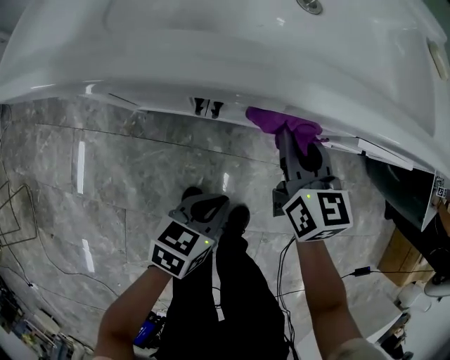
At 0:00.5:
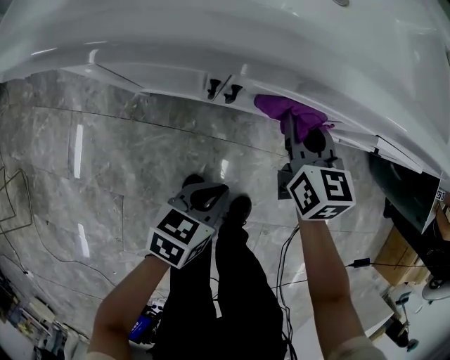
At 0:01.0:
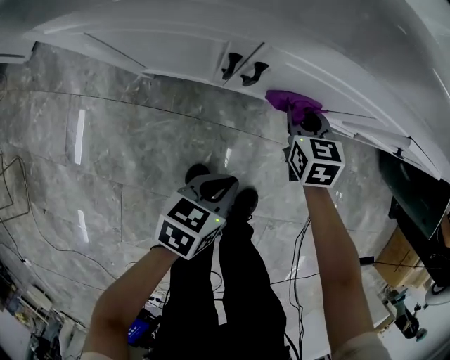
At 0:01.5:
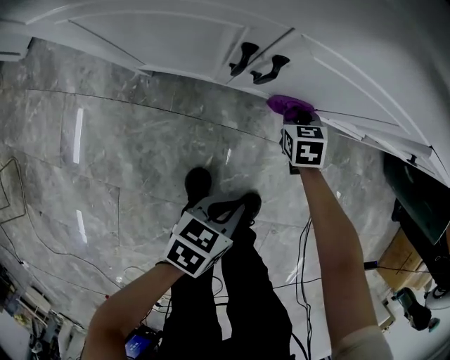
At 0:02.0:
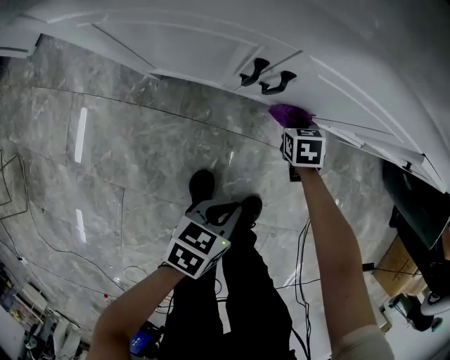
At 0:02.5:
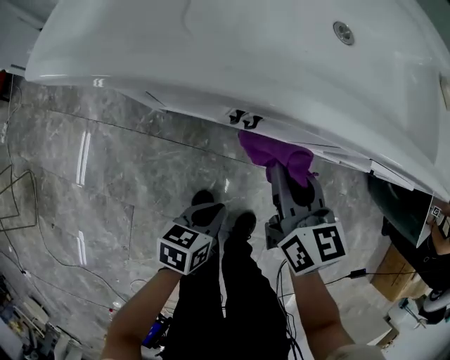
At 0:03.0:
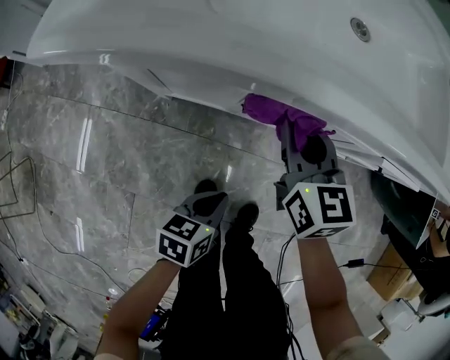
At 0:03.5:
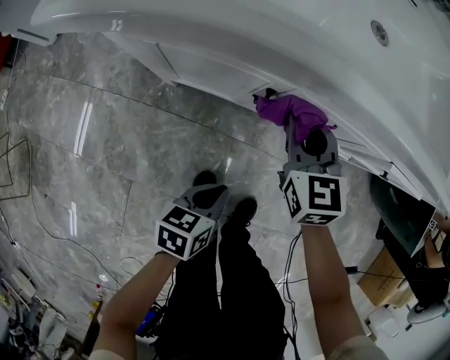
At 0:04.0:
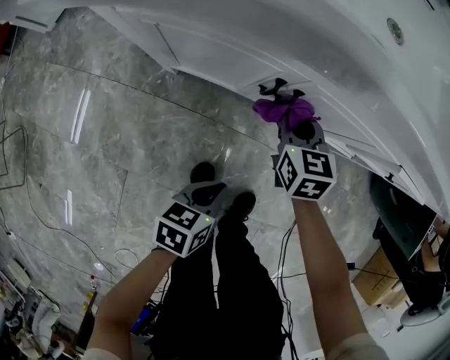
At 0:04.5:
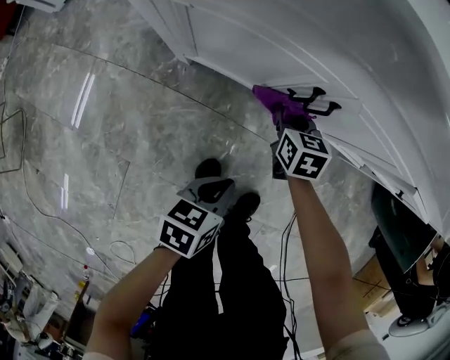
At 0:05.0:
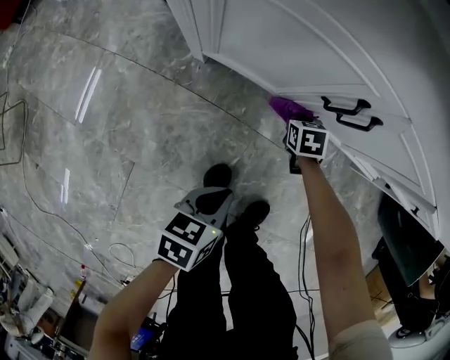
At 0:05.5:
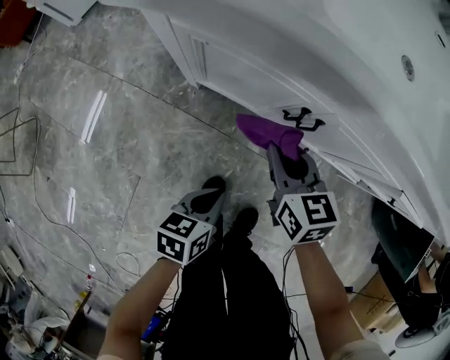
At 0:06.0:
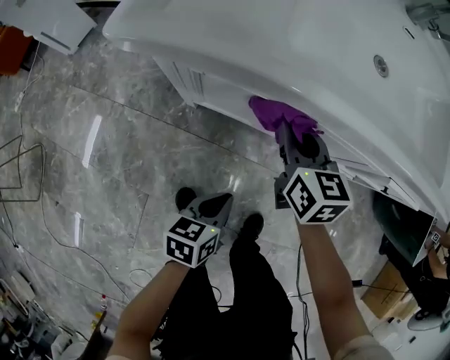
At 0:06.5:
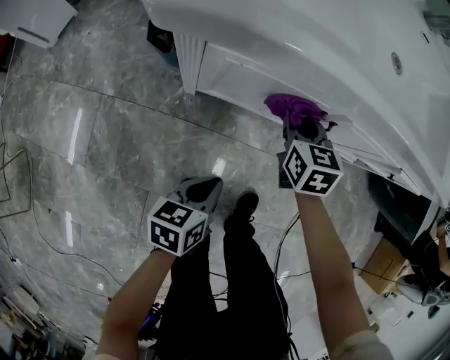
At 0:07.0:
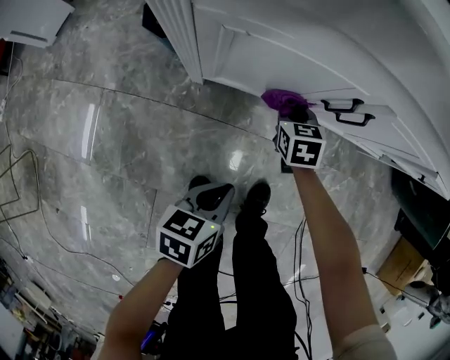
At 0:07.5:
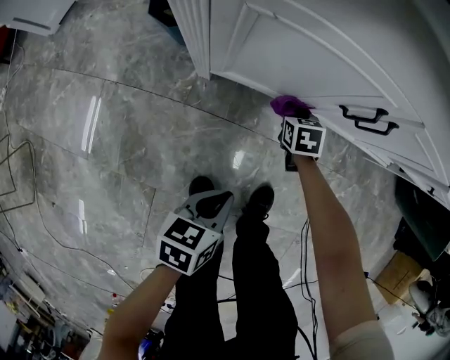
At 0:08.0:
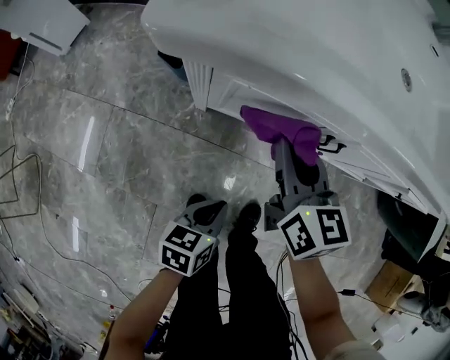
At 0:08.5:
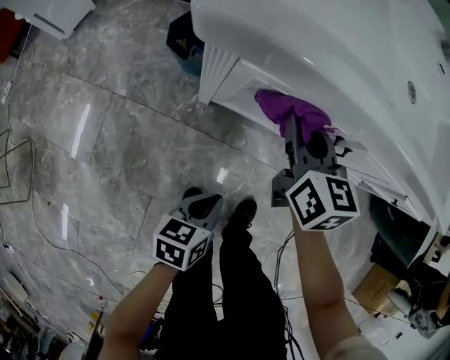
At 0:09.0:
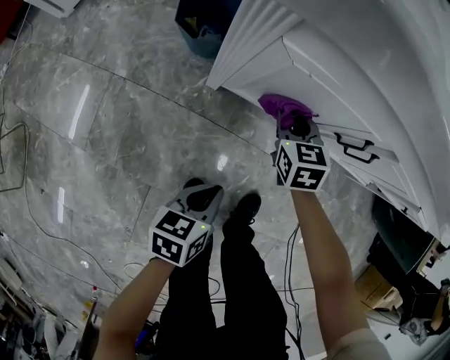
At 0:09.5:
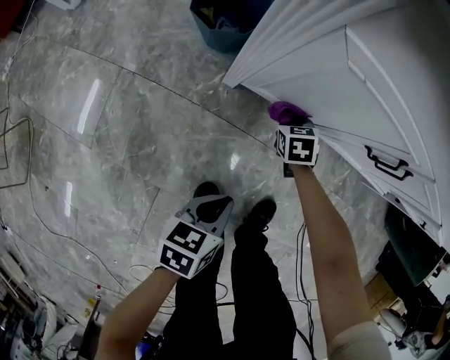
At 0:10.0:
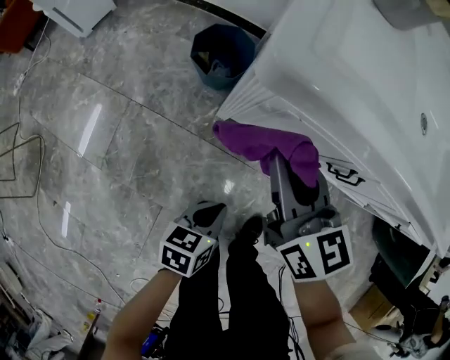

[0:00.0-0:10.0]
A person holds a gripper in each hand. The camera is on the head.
0:00.0 to 0:02.0: The right gripper heads downward, covering roughly 30 cm, and angles its fingers downward, by roughly 40 degrees. The left gripper is displaced downward and backward by approximately 15 cm.
0:02.0 to 0:04.0: The right gripper goes roughly 25 cm upward and to the left, and changes its angle by about 30 degrees; the left gripper moves to the left, about 5 cm.
0:04.0 to 0:06.0: The right gripper is displaced to the left by approximately 10 cm, and moves roughly 25 cm downward and comes back. Meanwhile the left gripper shifts about 10 cm to the left and upward.
0:06.0 to 0:08.0: The two grippers go approximately 10 cm to the left. The right gripper moves some 35 cm downward and comes back. The left gripper moves approximately 15 cm downward and comes back.
0:08.0 to 0:10.0: The left gripper moves to the left, some 5 cm, and reaches roughly 10 cm downward, then returns, while the right gripper travels to the left by roughly 10 cm, and moves approximately 40 cm downward and comes back.

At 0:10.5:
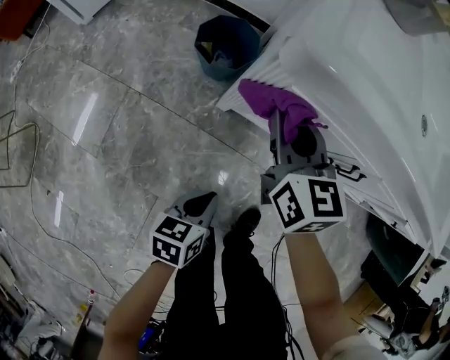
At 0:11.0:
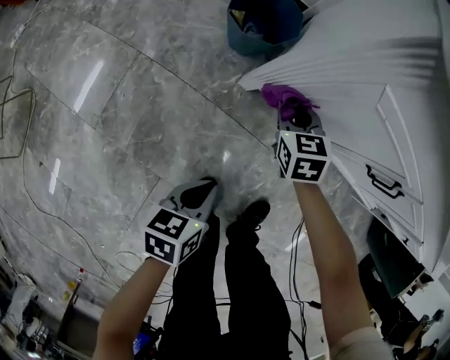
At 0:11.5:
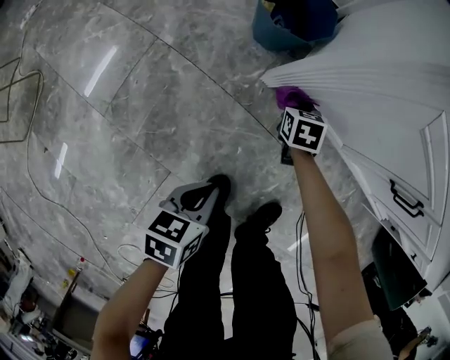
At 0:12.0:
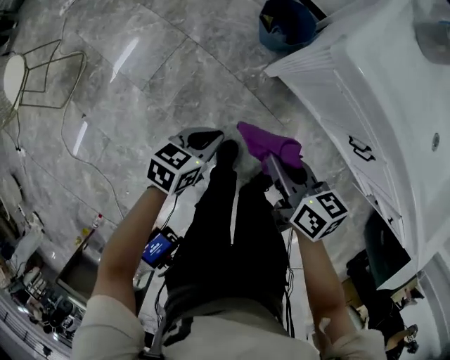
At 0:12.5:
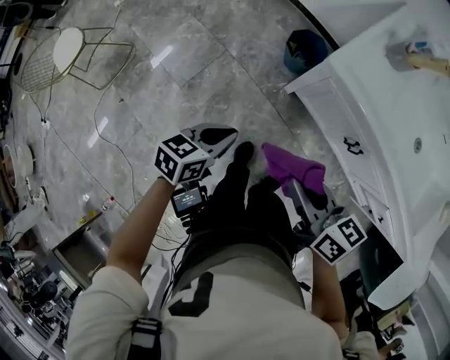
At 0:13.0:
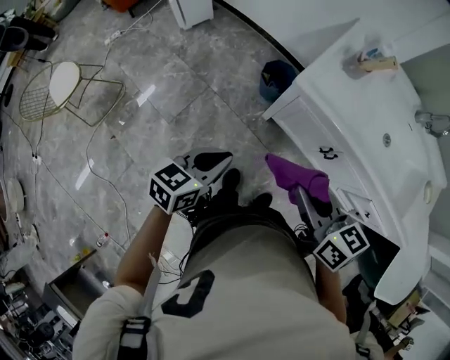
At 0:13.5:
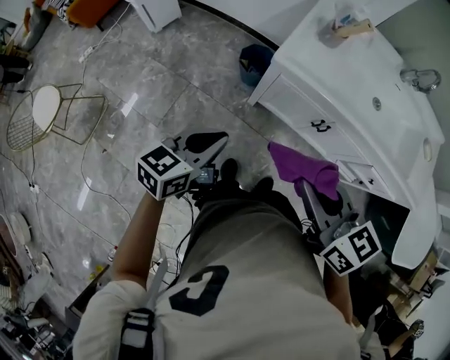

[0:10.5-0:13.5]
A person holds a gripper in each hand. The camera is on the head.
0:10.5 to 0:12.0: The right gripper is displaced backward by approximately 20 cm, travels downward and back again, approximately 40 cm each way, and changes its angle by about 50 degrees; the left gripper goes approximately 15 cm to the left and upward.
0:12.0 to 0:13.5: The grippers both shift upward by roughly 35 cm. The left gripper rotates approximately 30 degrees; the right gripper turns by some 30 degrees.

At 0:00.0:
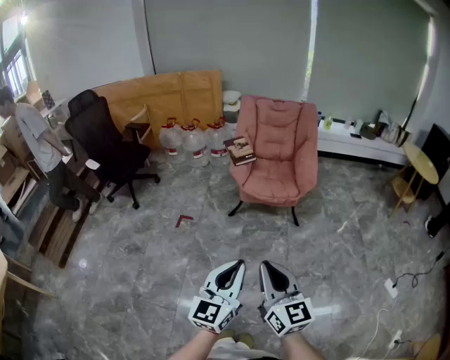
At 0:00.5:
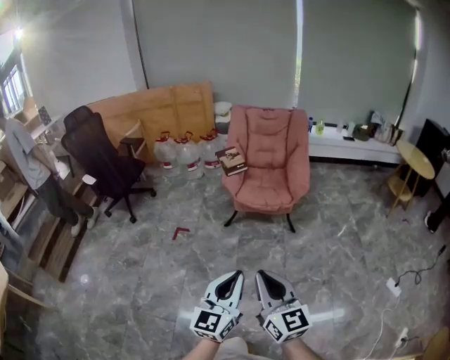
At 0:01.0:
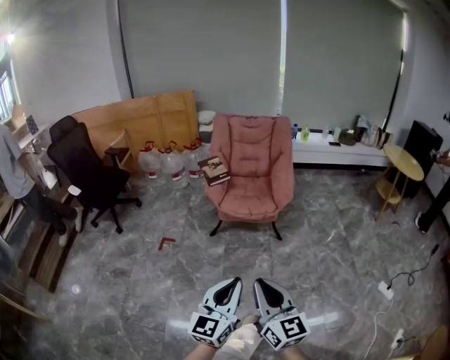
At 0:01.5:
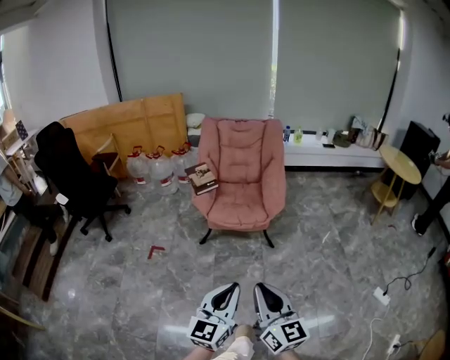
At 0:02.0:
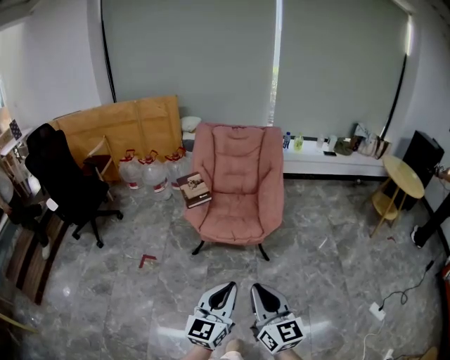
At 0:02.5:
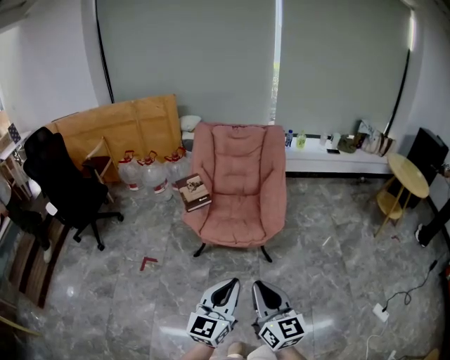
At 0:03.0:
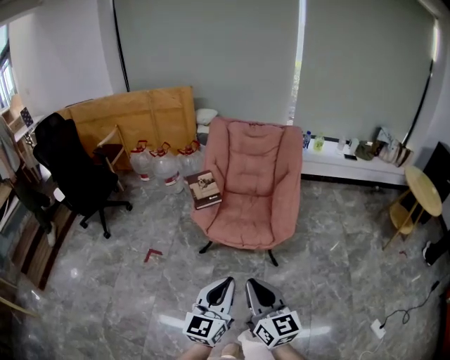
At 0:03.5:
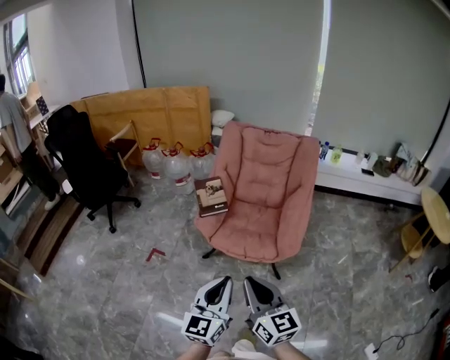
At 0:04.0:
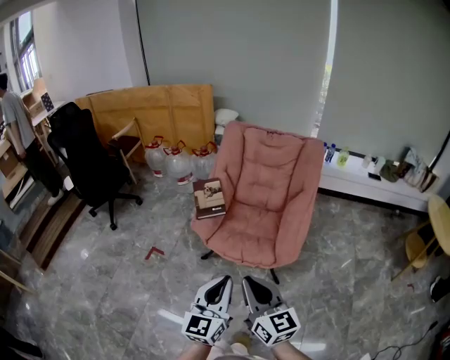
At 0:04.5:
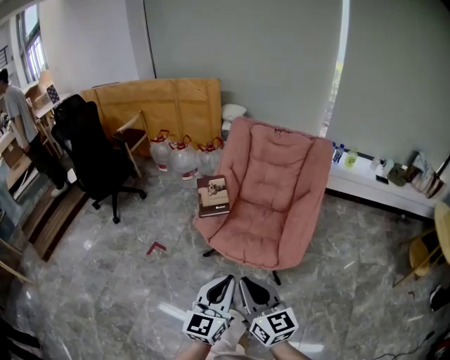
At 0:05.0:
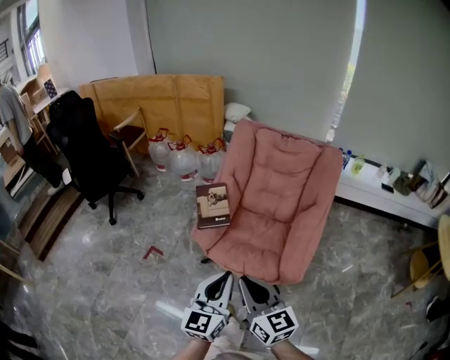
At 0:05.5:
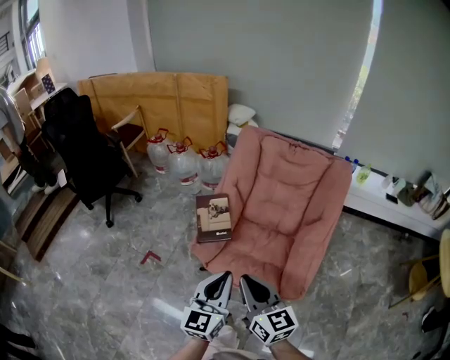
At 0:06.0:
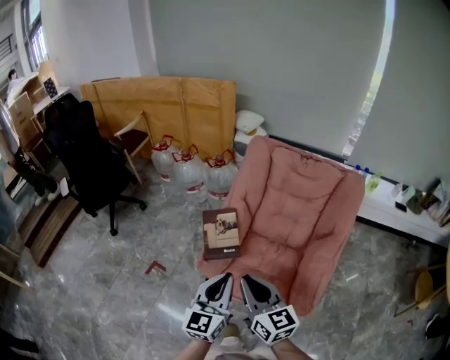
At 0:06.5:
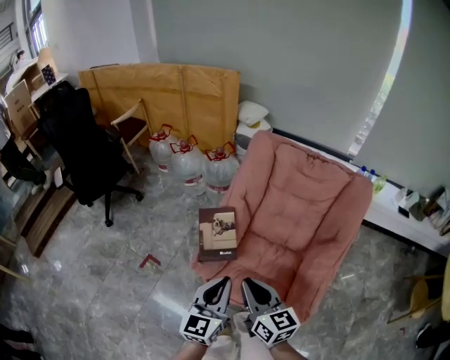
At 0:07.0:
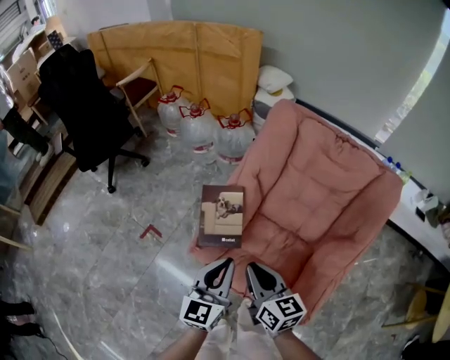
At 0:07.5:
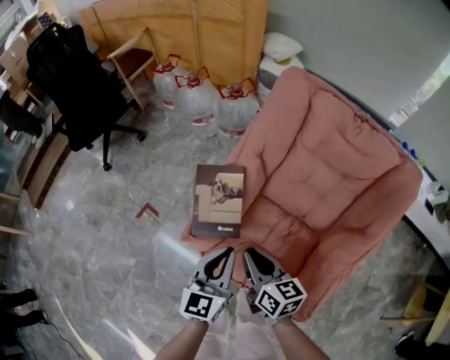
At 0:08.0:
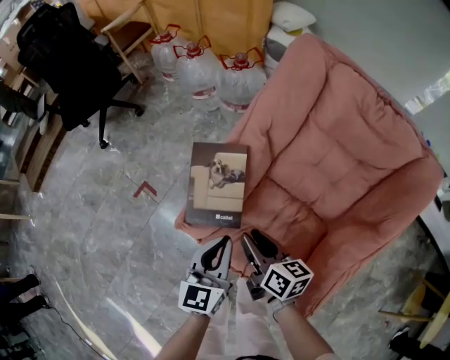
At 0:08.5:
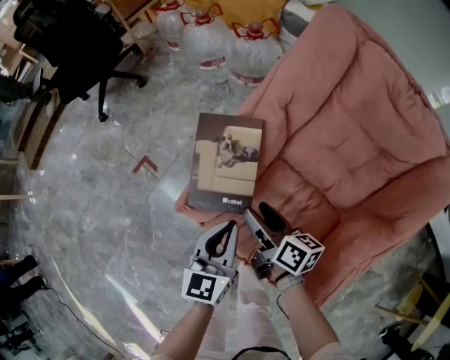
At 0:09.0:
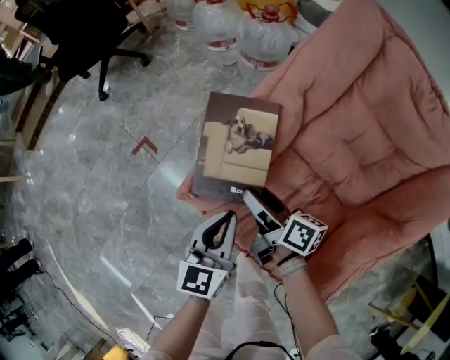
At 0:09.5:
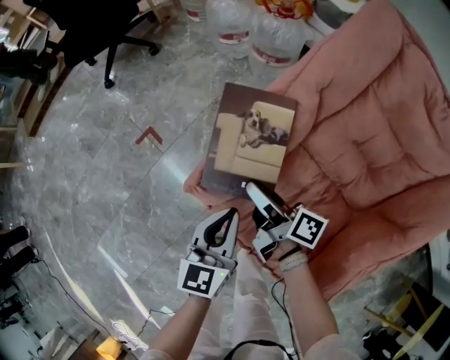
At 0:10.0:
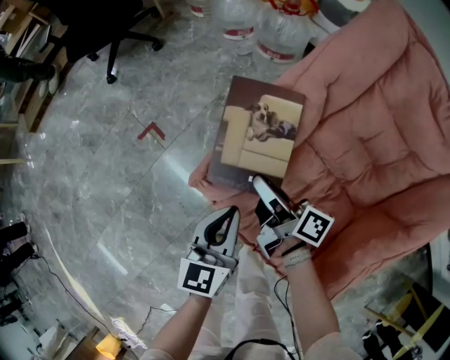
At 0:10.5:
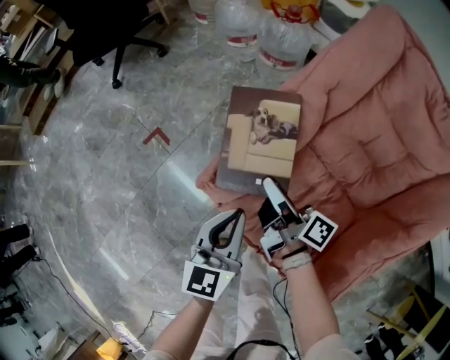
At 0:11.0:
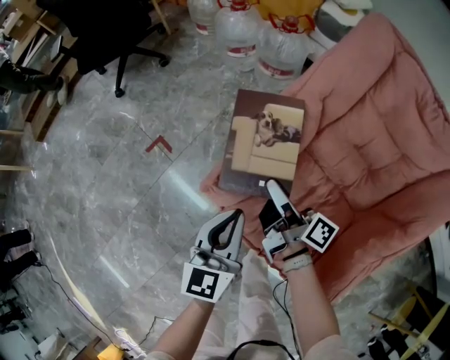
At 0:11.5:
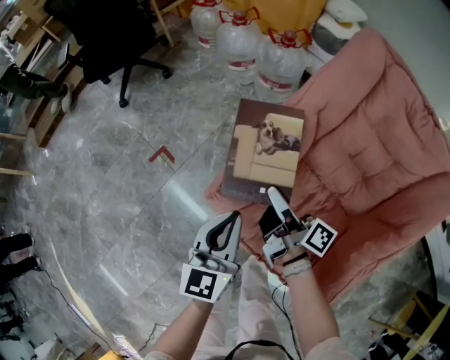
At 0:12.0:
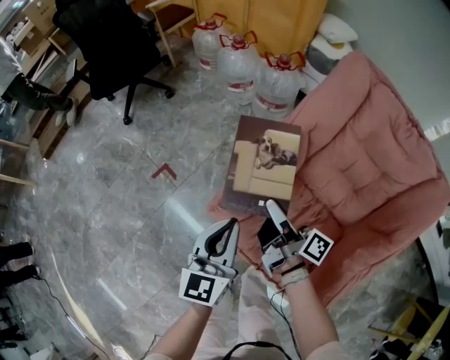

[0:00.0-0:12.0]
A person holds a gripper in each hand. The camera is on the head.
0:00.0 to 0:02.0: The two grippers go approximately 25 cm forward and to the right.
0:02.0 to 0:04.0: The grippers both shift forward by approximately 20 cm. The right gripper turns by roughly 20 degrees.
0:04.0 to 0:06.0: Both grippers travel together forward, roughly 25 cm.
0:06.0 to 0:08.0: The grippers both shift downward and forward by approximately 25 cm. The left gripper rotates about 20 degrees, while the right gripper turns by approximately 40 degrees, and opens.
0:08.0 to 0:10.0: The right gripper is displaced forward, downward and to the left by roughly 10 cm, rotates some 30 degrees, and opens, then closes once more; the left gripper moves downward and to the left, some 10 cm.
0:10.0 to 0:12.0: The grippers both shift upward by about 10 cm.

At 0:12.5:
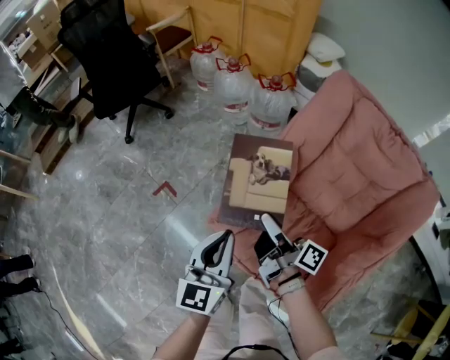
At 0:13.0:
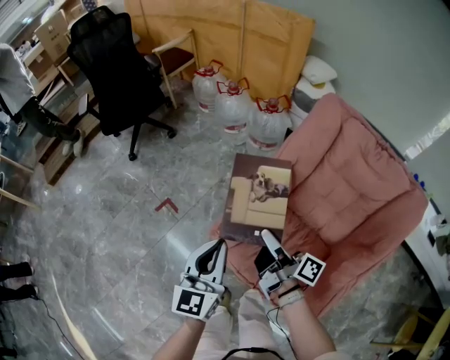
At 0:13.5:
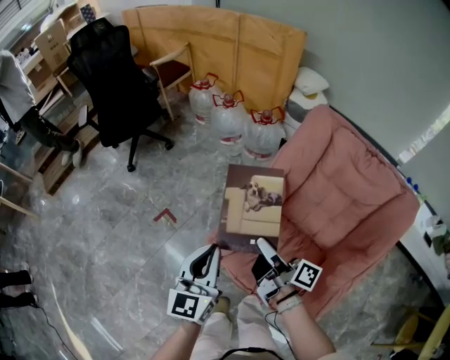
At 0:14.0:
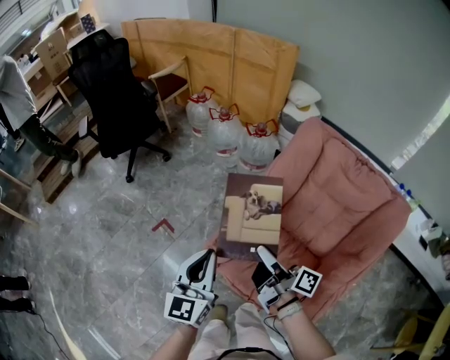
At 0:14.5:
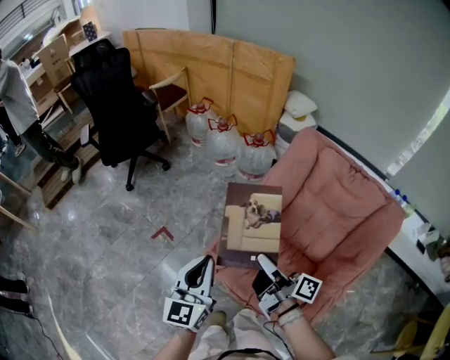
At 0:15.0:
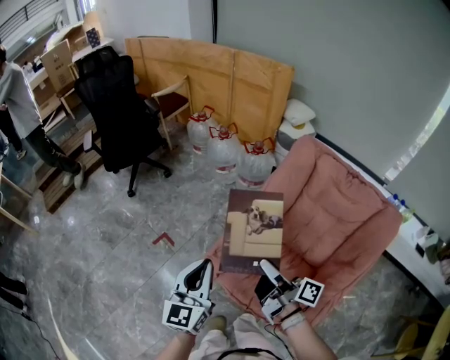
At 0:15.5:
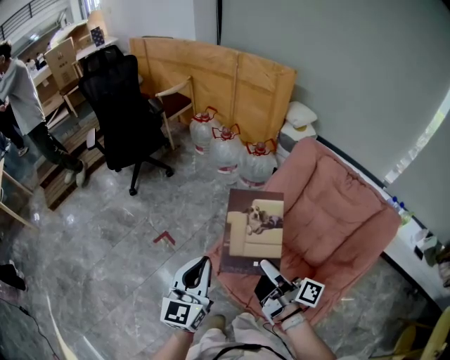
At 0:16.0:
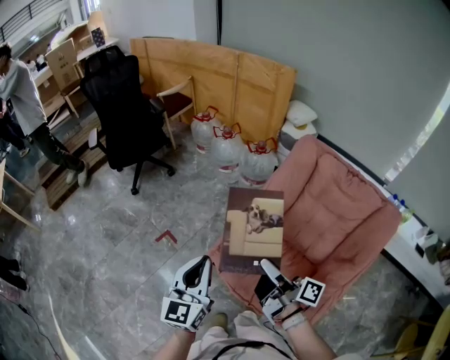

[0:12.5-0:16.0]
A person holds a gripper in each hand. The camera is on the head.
0:12.5 to 0:14.5: The two grippers go approximately 10 cm upward.
0:14.5 to 0:16.0: The grippers move only a little.
